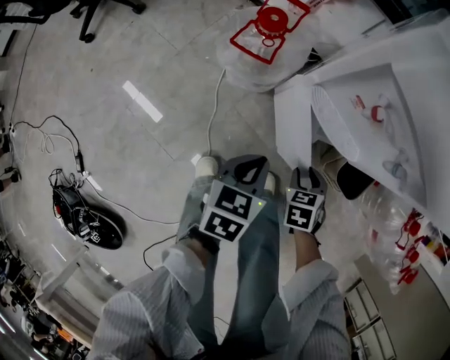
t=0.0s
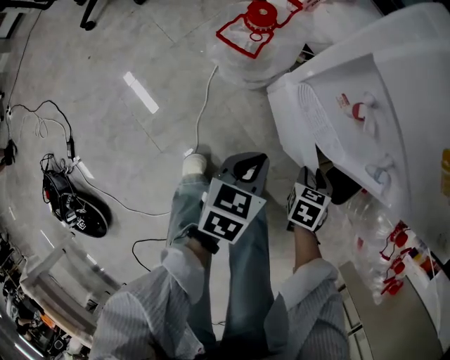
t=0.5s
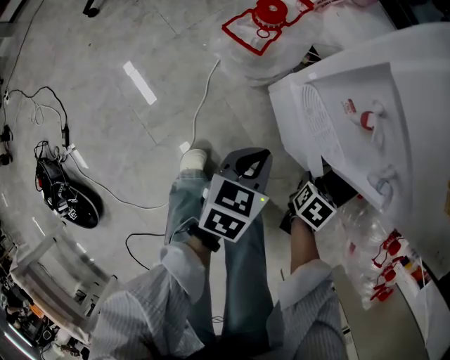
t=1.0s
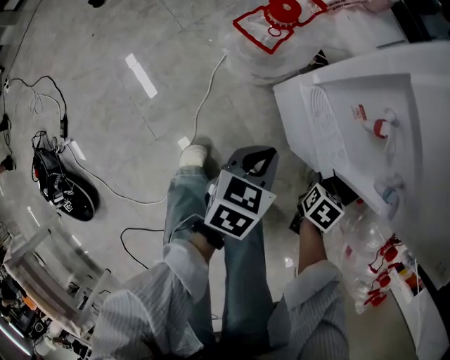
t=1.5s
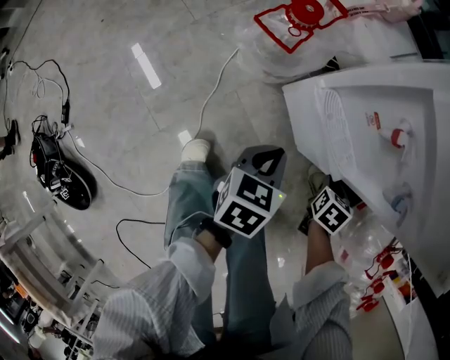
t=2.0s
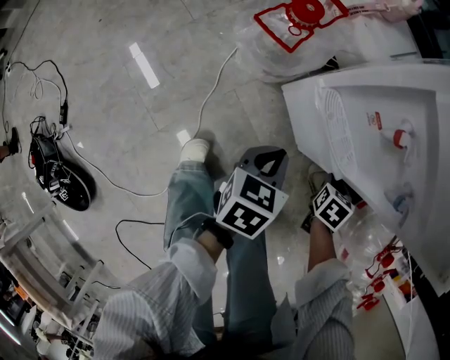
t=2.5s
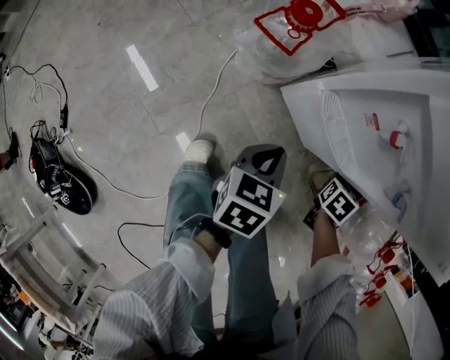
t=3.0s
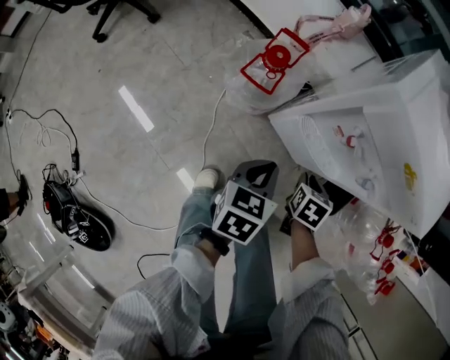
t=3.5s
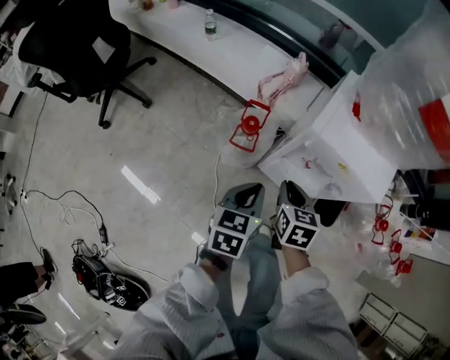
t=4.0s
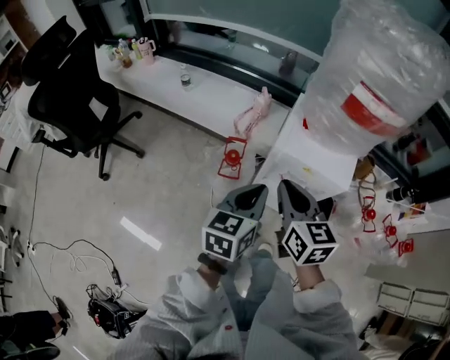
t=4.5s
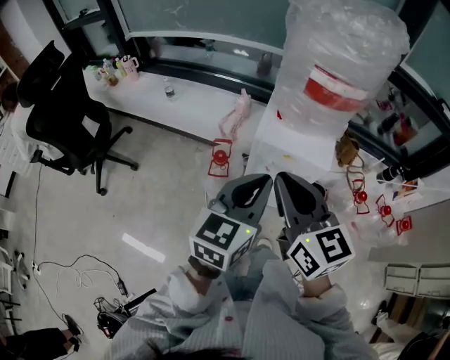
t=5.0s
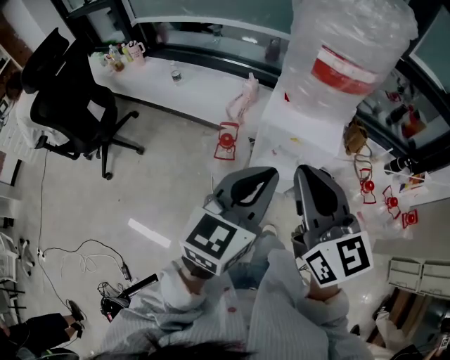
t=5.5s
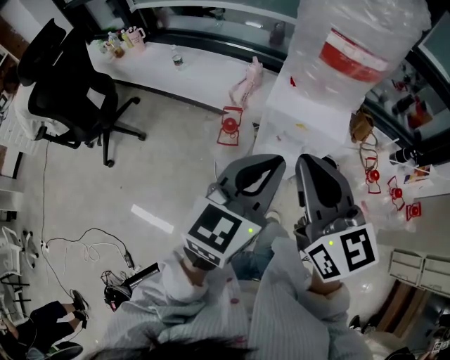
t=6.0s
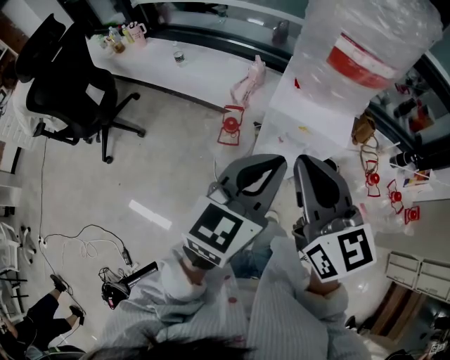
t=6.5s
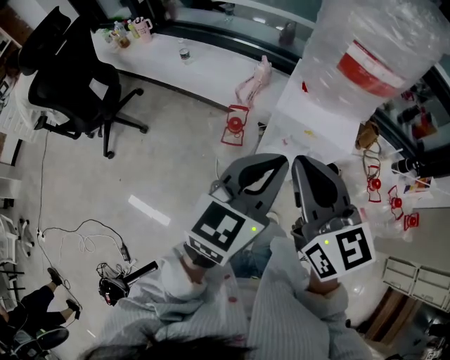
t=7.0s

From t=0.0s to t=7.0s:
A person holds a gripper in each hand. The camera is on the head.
From t=0.0s to t=2.0s: The left gripper changes place by about 5 cm. The right gripper heads to the right and forward, covering approximately 15 cm.
From t=2.0s to t=3.5s: The right gripper moves to the left and upward, roughly 15 cm; the left gripper goes some 10 cm upward.
From t=3.5s to t=5.0s: Both grippers travel together upward, some 50 cm. The left gripper tips its fingers upward by some 30 degrees; the right gripper tilts its fingers about 60 degrees upward.
From t=5.0s to t=7.0s: There are only small adjustments of the grippers.

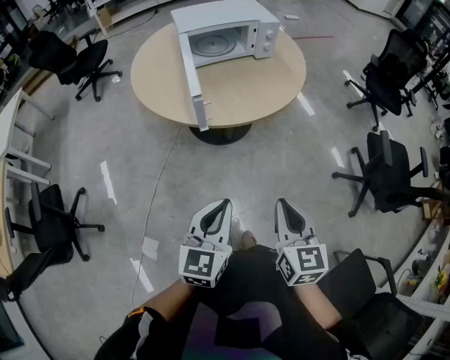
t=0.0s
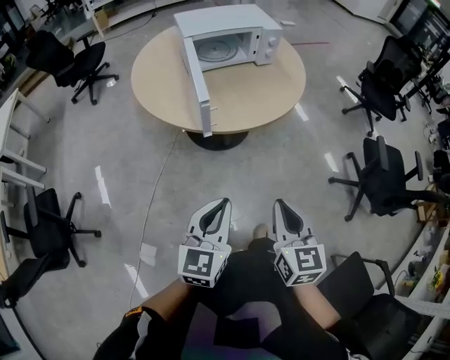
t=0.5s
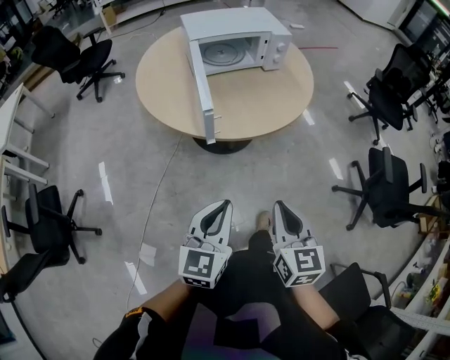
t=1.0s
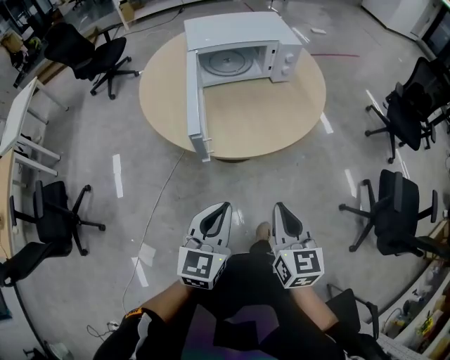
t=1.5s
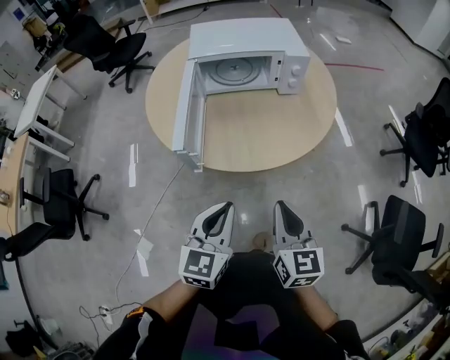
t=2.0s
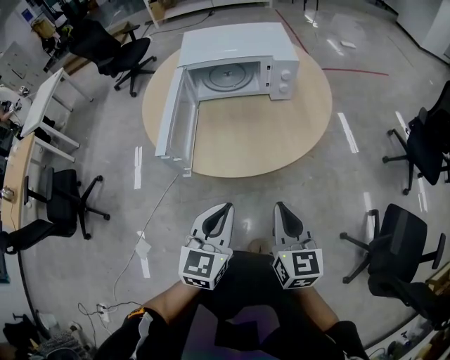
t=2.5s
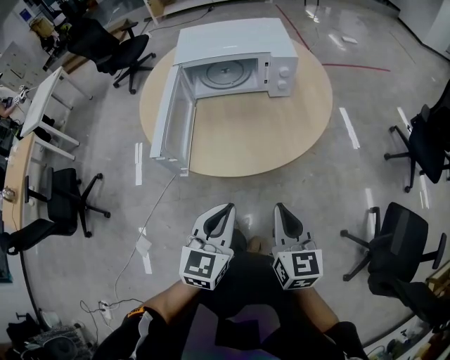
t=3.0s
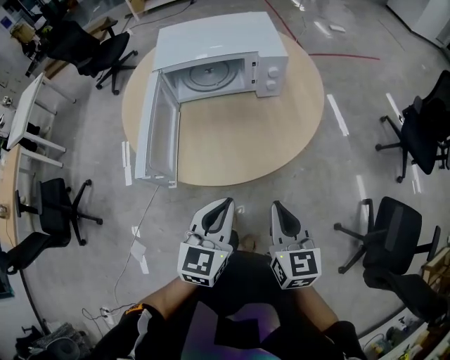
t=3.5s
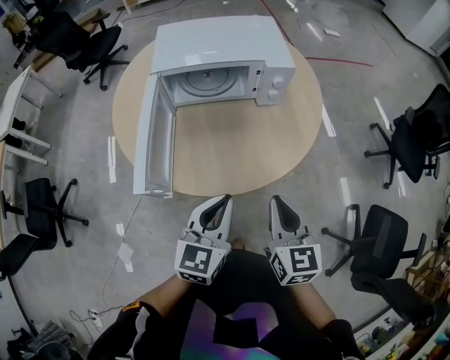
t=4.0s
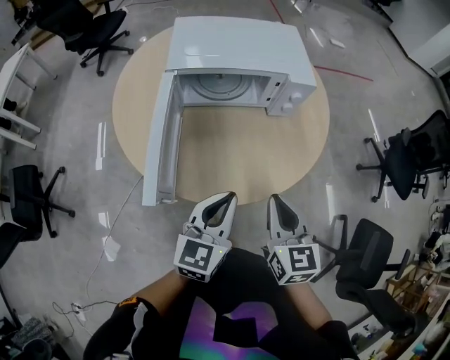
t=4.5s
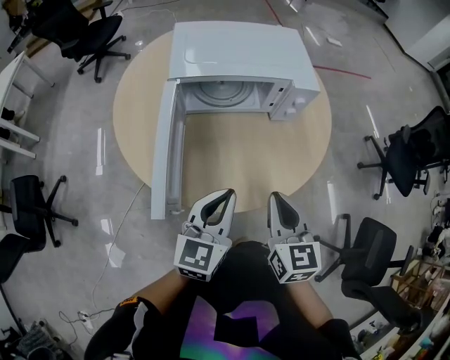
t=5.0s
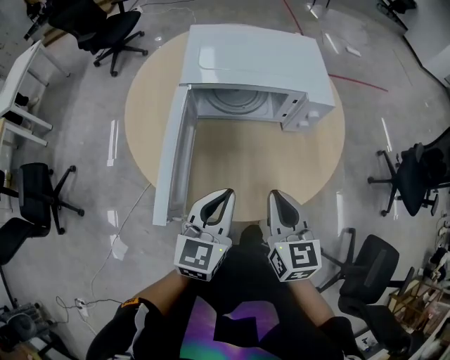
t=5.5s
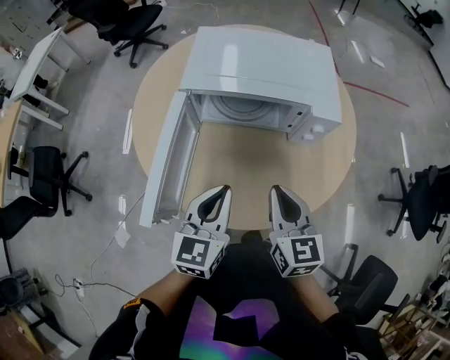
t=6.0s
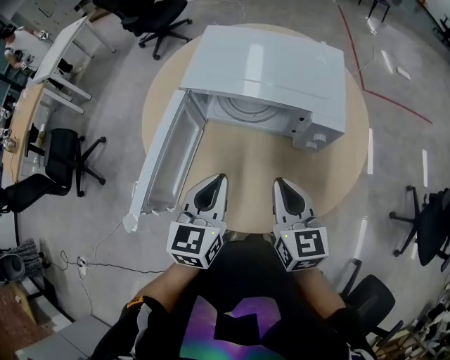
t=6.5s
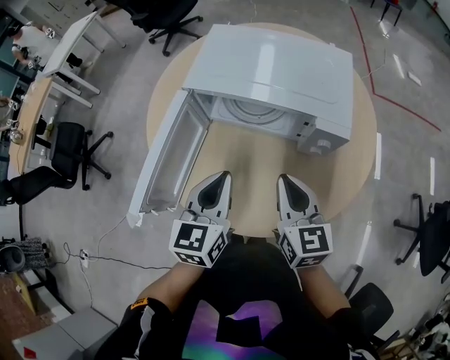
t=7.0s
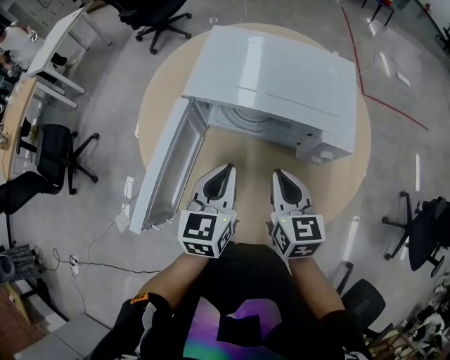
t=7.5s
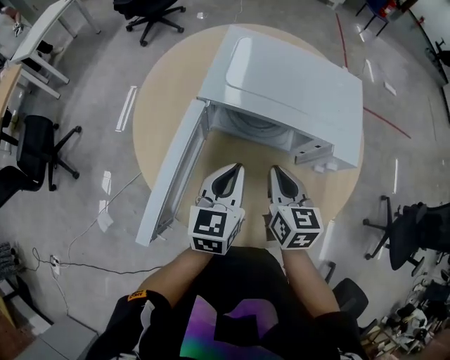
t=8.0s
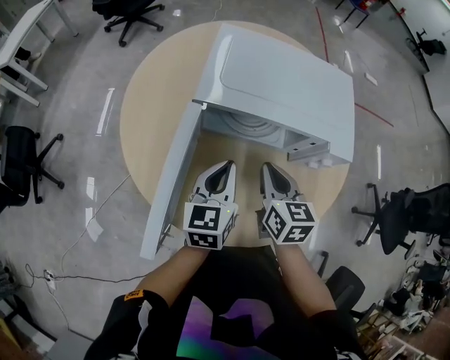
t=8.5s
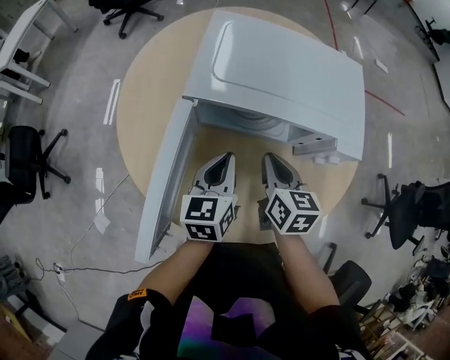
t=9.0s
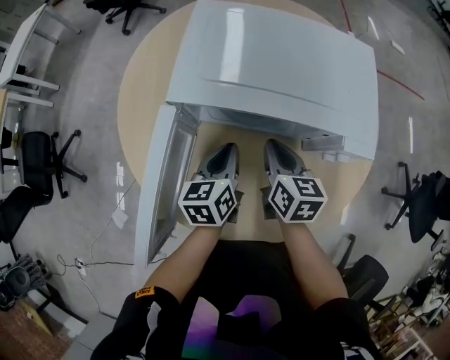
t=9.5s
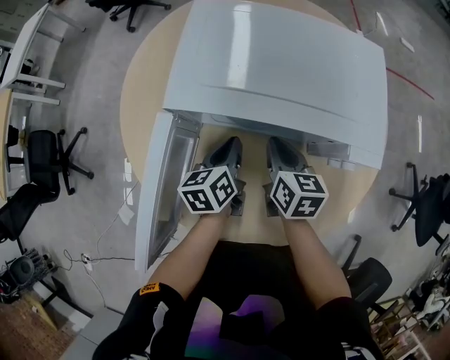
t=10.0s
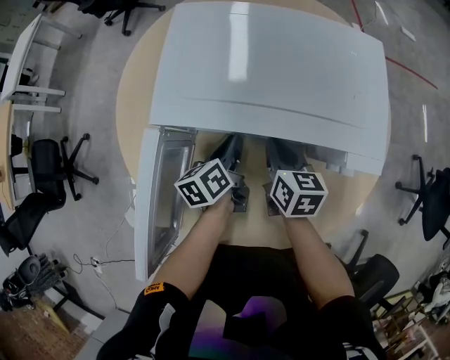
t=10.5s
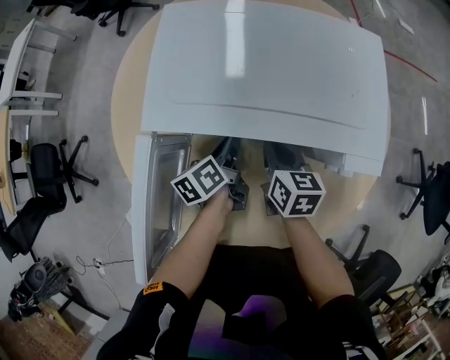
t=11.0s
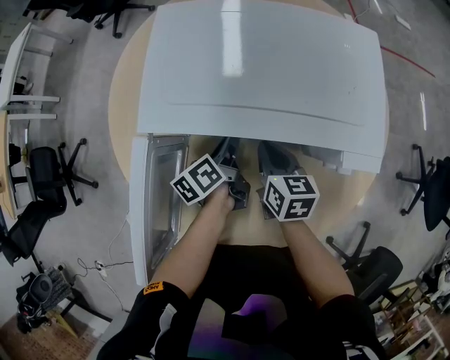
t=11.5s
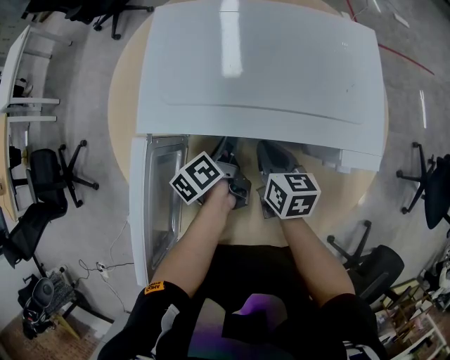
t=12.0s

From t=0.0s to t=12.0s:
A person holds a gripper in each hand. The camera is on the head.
From t=0.0s to t=2.0s: The left gripper travels forward and to the right by approximately 25 cm; the right gripper is displaced forward by some 25 cm.
From t=2.0s to t=4.0s: The right gripper is displaced forward by about 15 cm; the left gripper is displaced forward and to the right by approximately 15 cm.
From t=4.0s to t=6.0s: The two grippers go approximately 15 cm forward.
From t=6.0s to t=8.0s: The two grippers go about 15 cm forward.
From t=8.0s to t=10.0s: The grippers both shift downward and forward by roughly 15 cm. The left gripper swivels some 30 degrees.
From t=10.0s to t=12.0s: The left gripper changes place by about 5 cm, and rotates approximately 30 degrees.

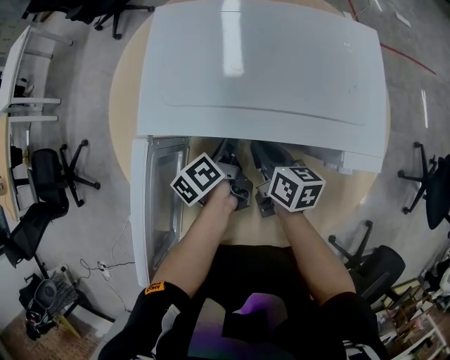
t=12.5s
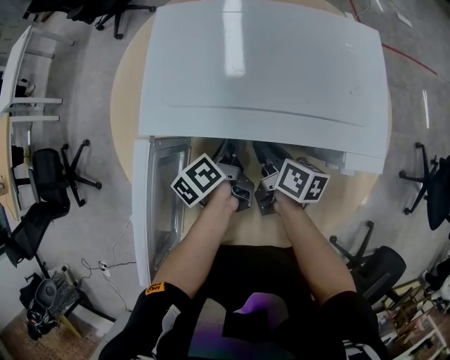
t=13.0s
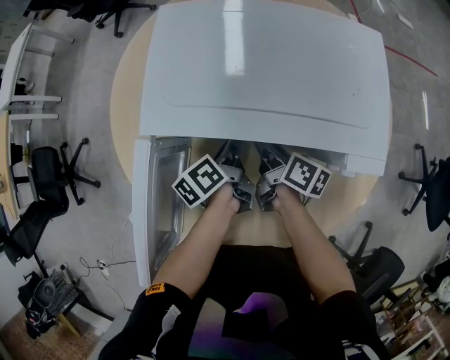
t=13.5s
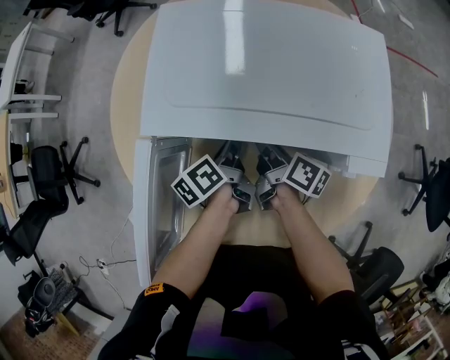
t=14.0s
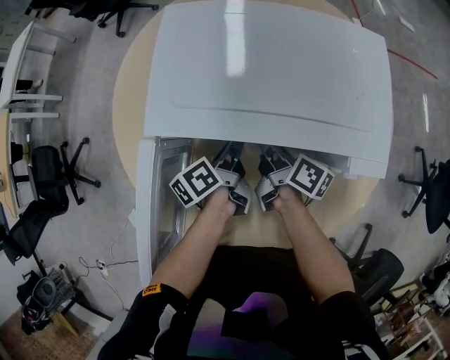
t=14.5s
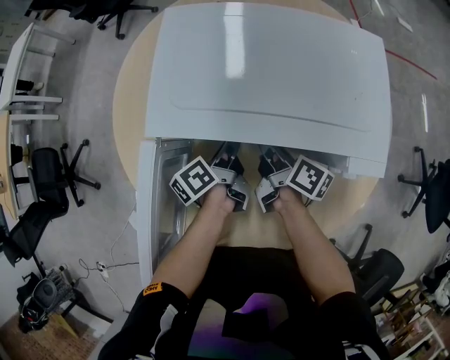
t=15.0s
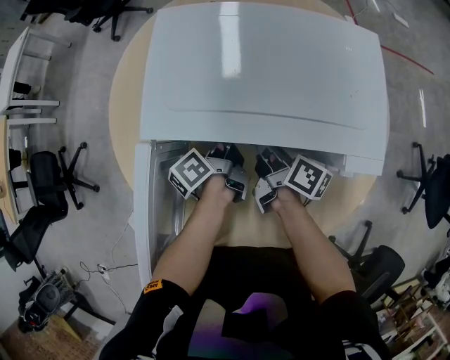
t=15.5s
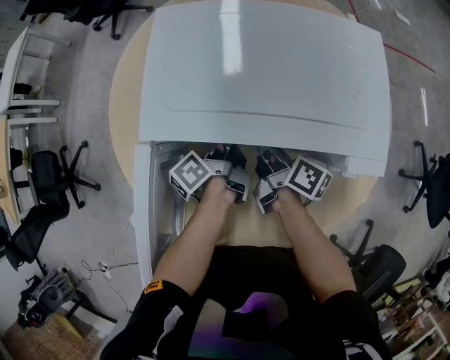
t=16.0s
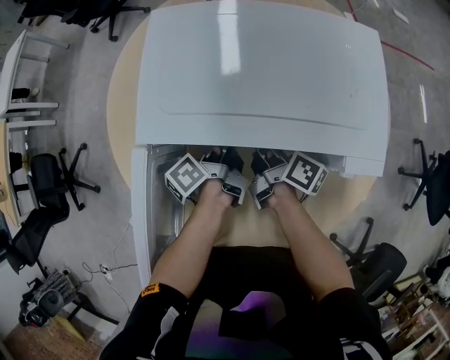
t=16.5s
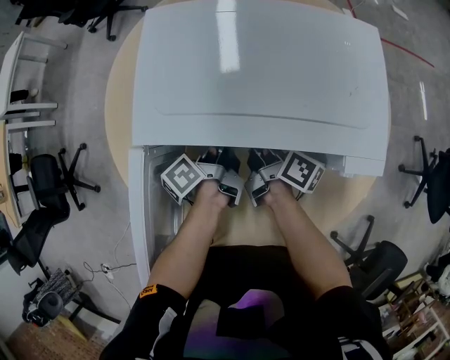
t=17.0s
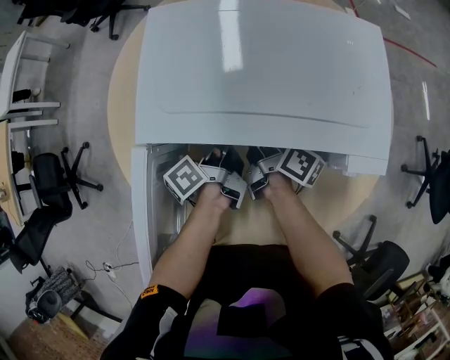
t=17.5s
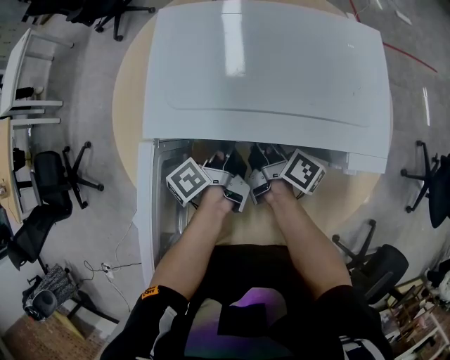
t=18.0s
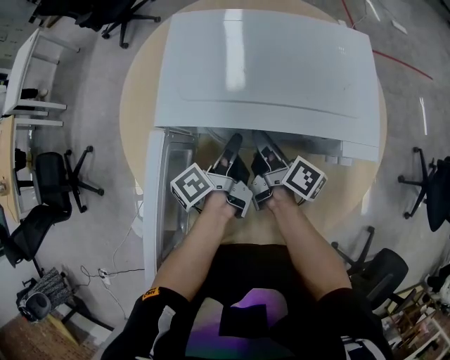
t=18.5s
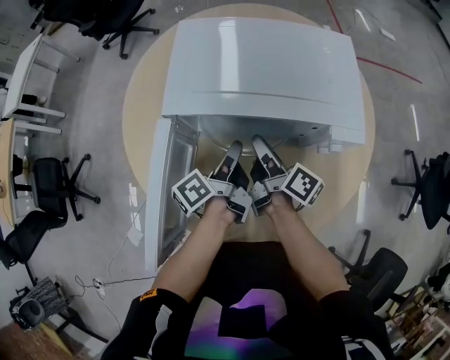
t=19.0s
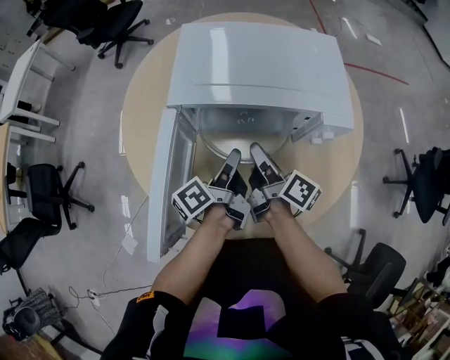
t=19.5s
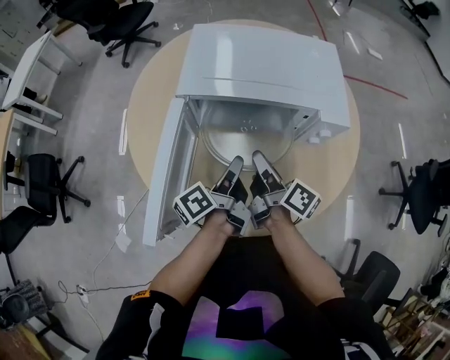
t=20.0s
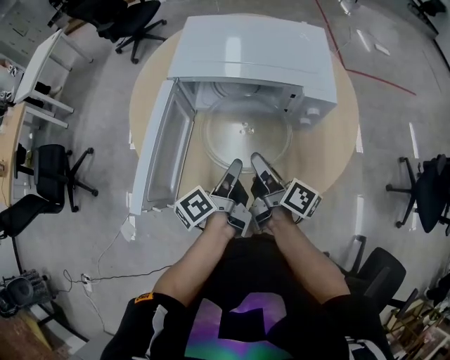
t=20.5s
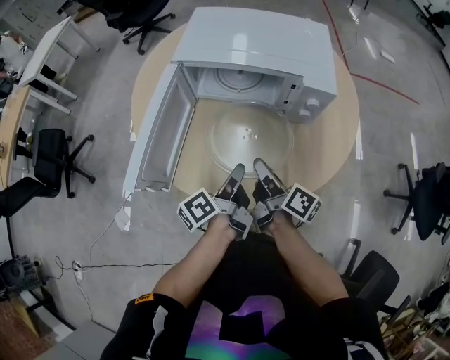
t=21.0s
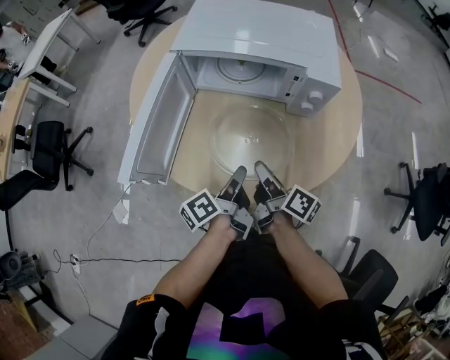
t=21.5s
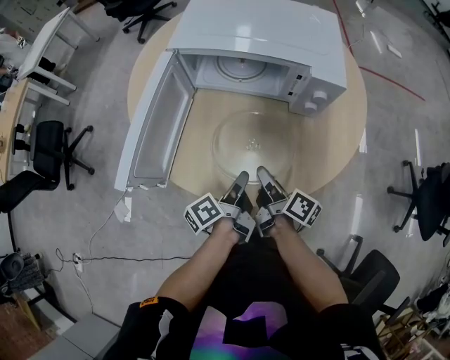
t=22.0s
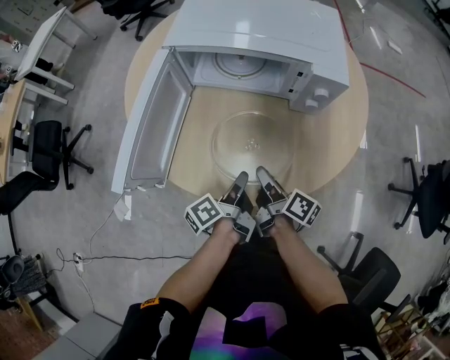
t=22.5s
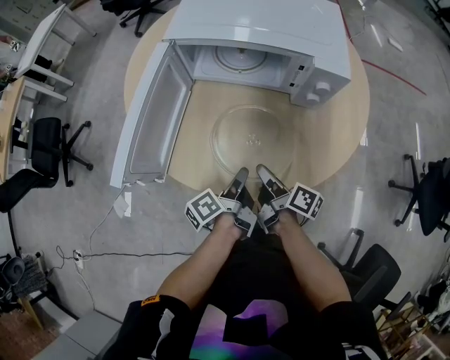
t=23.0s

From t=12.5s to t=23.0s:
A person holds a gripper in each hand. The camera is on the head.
From t=12.5s to t=14.5s: The right gripper changes its angle by some 30 degrees.
From t=14.5s to t=16.5s: The grippers move only a little.
From t=16.5s to t=19.0s: The left gripper goes some 10 cm backward and upward. Meanwhile the right gripper goes roughly 10 cm upward and backward.
From t=19.0s to t=21.0s: The grippers both shift backward by roughly 20 cm.
From t=21.0s to t=23.0s: Both grippers move downward, some 10 cm.
